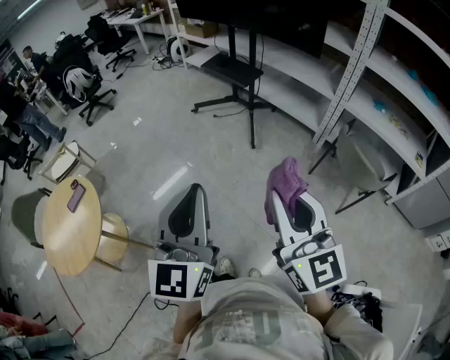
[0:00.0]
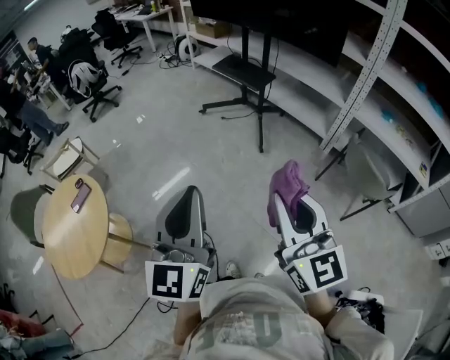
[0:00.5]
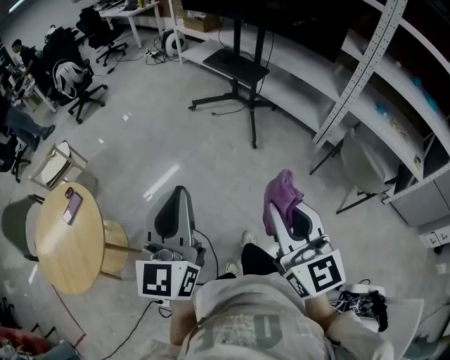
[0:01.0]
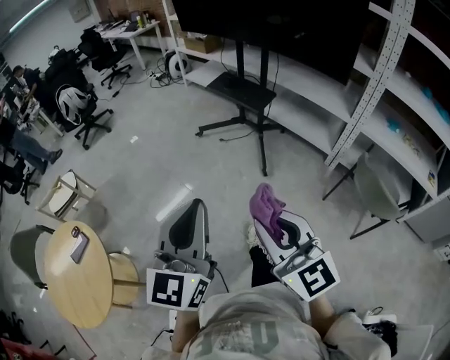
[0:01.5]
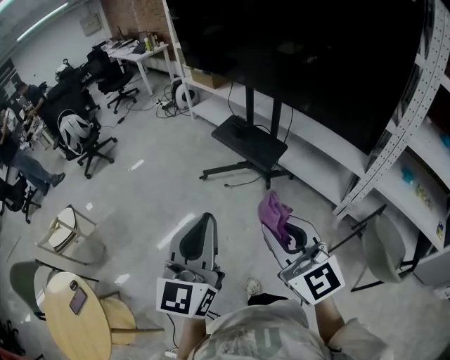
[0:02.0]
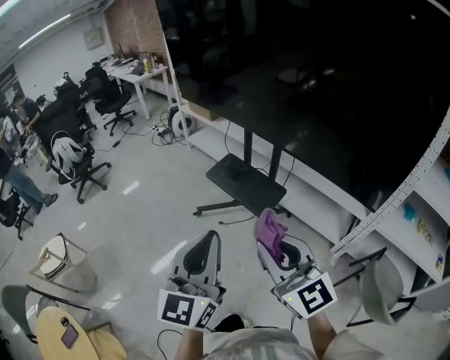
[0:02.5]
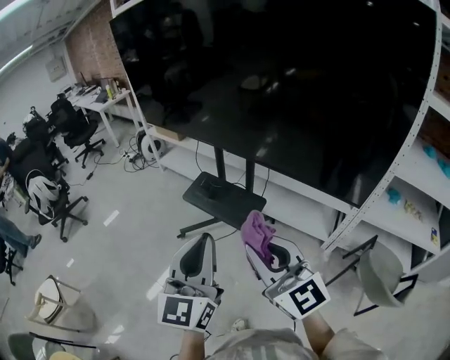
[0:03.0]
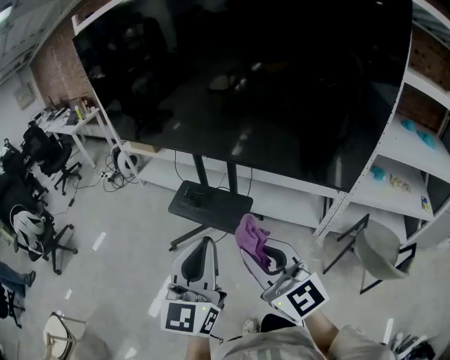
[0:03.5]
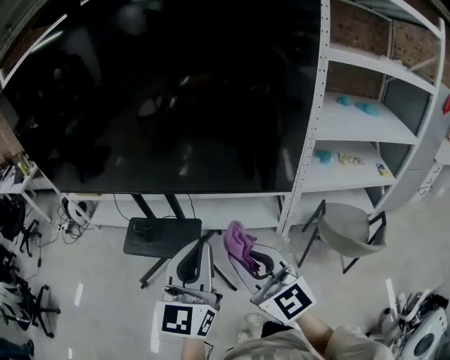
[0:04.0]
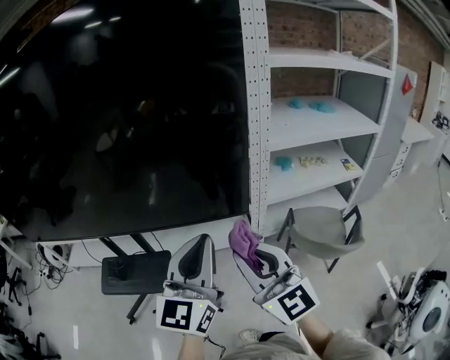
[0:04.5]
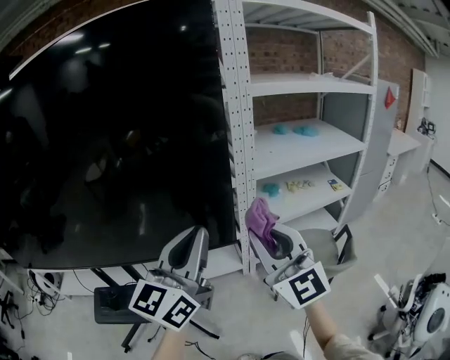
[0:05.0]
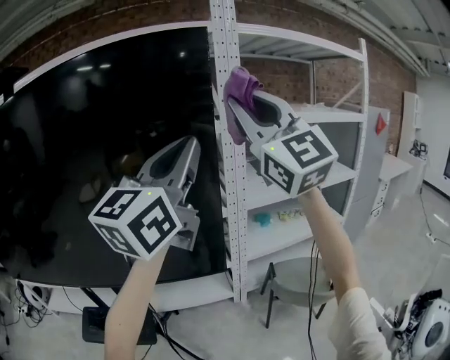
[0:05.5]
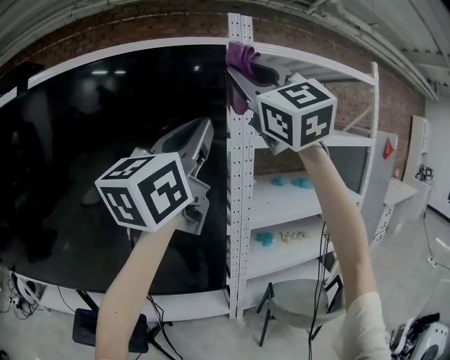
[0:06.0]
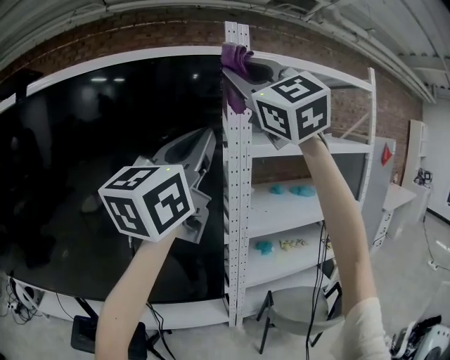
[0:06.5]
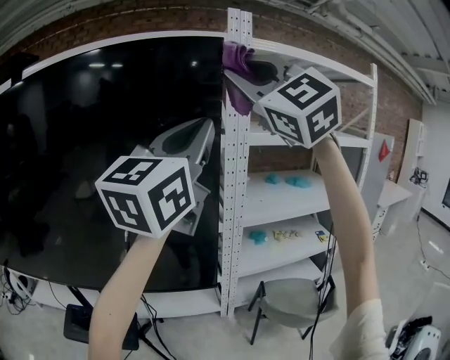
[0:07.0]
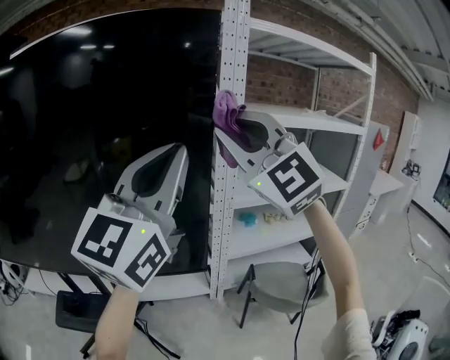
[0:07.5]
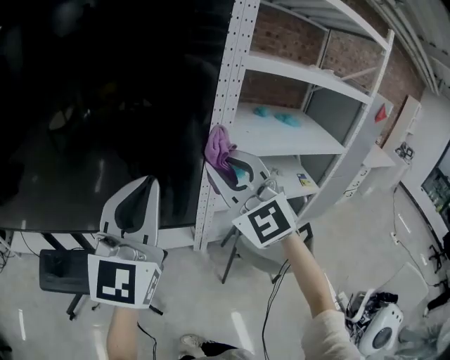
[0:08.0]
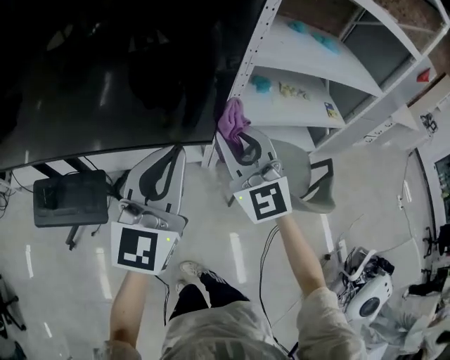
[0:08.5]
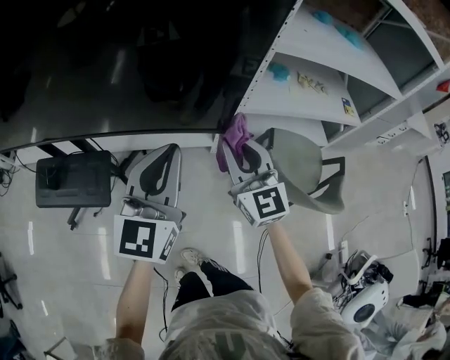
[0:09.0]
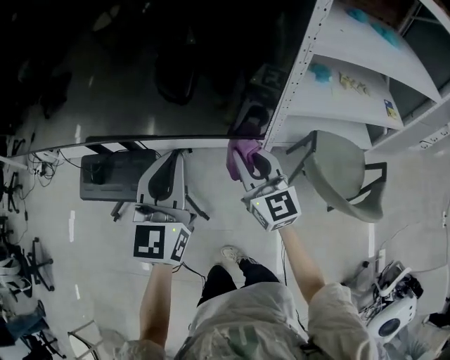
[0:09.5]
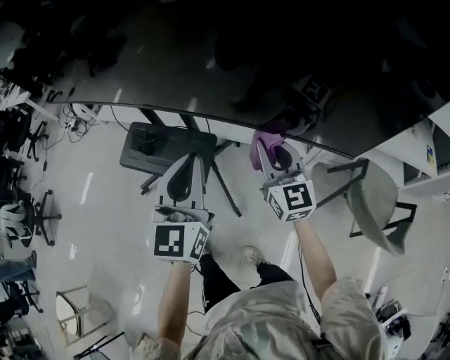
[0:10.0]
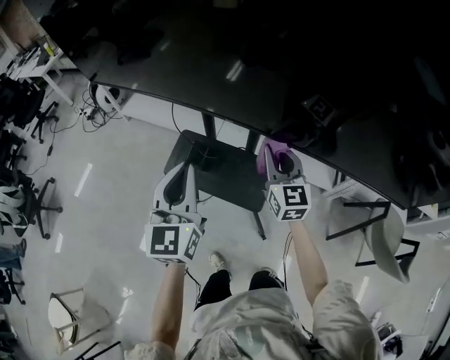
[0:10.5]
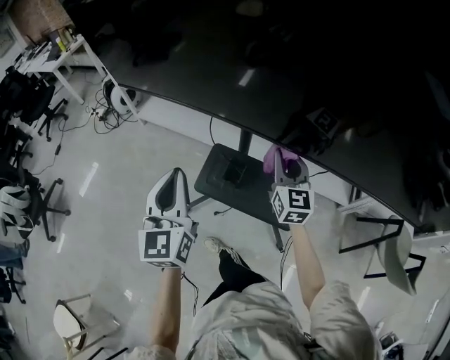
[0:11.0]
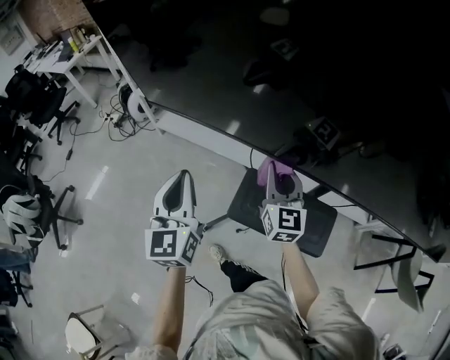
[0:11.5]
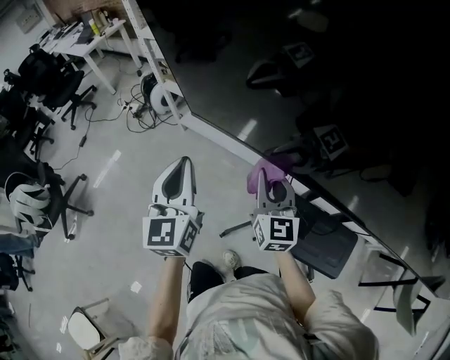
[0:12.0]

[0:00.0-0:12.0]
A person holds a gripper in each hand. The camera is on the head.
0:00.0 to 0:02.0: The pair of grippers is taken forward, some 50 cm.
0:02.0 to 0:04.0: The right gripper shifts by about 25 cm, and rotates about 30 degrees. Meanwhile the left gripper changes place by approximately 35 cm, and swivels some 40 degrees.
0:04.0 to 0:06.0: The grippers both shift upward by approximately 40 cm. The left gripper swivels approximately 40 degrees, while the right gripper swivels some 50 degrees.
0:06.0 to 0:08.0: Both grippers travel together downward, some 30 cm. The left gripper changes its angle by about 20 degrees, while the right gripper rotates roughly 20 degrees.
0:08.0 to 0:10.0: Both grippers move downward and to the left, approximately 35 cm. The right gripper rotates around the line of its fingers by approximately 50 degrees, clockwise from behind; the left gripper turns by about 40 degrees.
0:10.0 to 0:12.0: Both grippers are carried to the left and forward, roughly 70 cm. The left gripper turns by roughly 20 degrees.

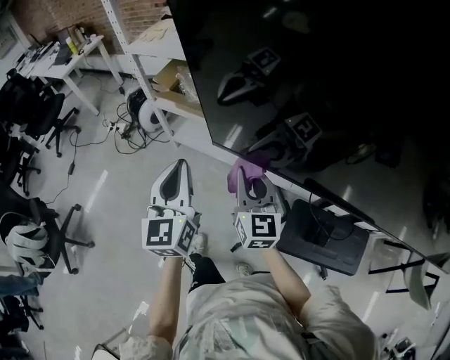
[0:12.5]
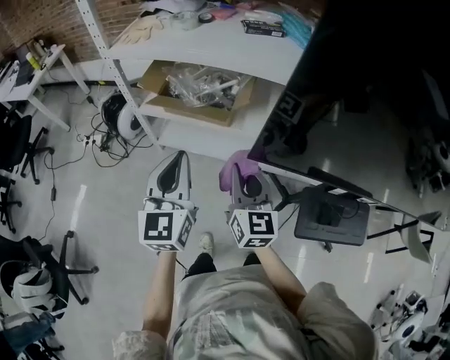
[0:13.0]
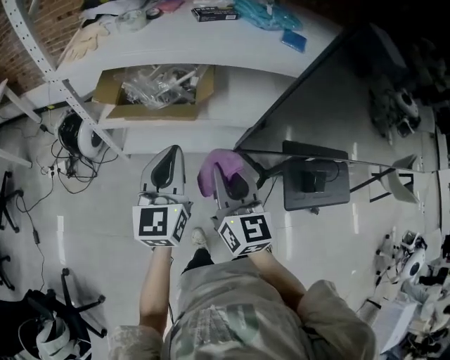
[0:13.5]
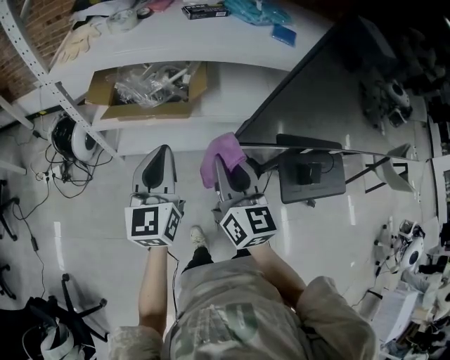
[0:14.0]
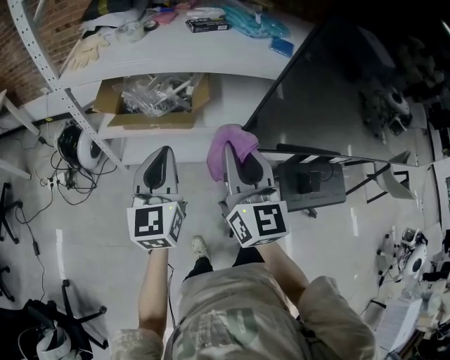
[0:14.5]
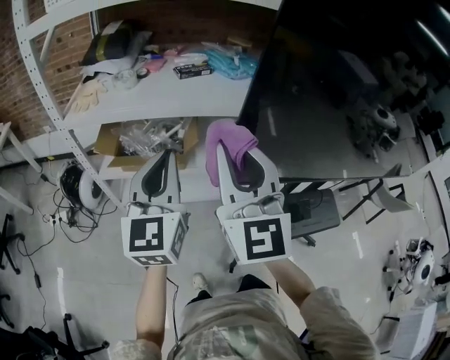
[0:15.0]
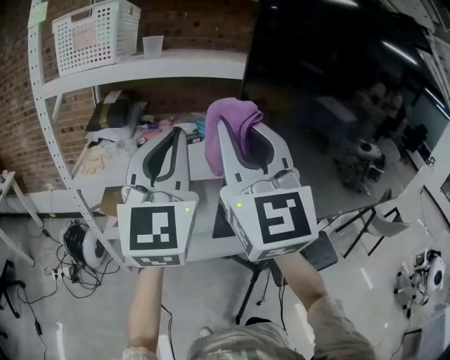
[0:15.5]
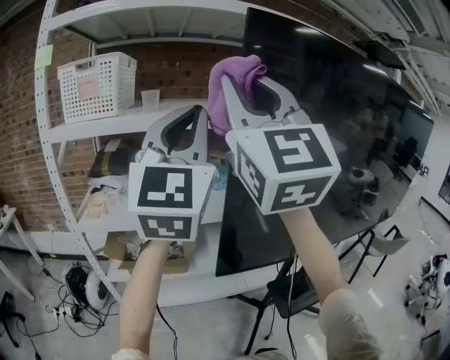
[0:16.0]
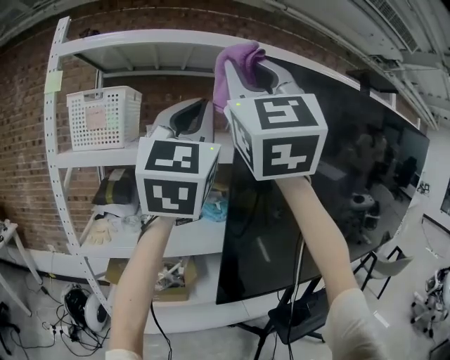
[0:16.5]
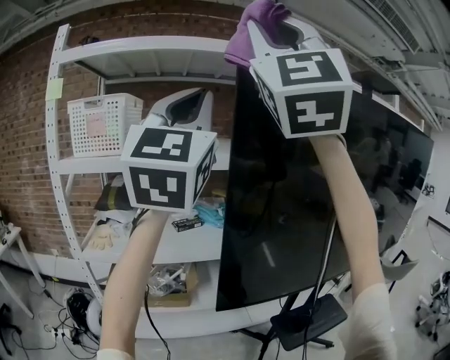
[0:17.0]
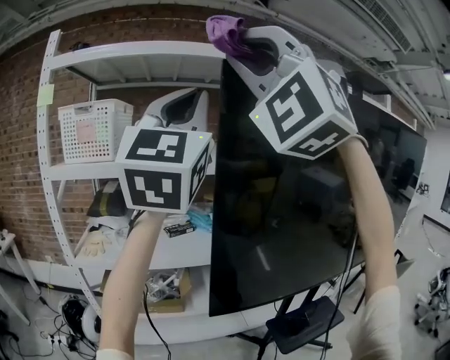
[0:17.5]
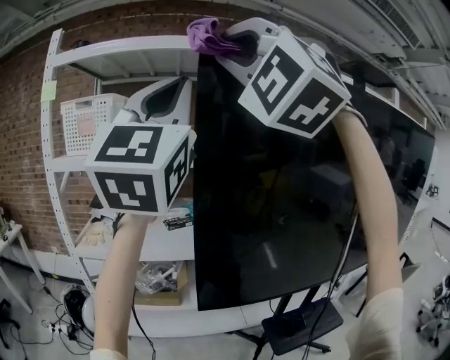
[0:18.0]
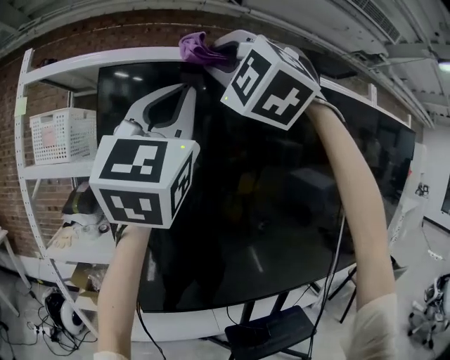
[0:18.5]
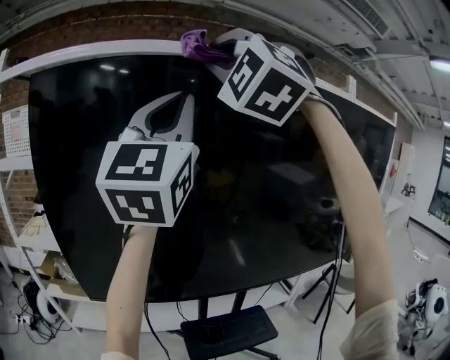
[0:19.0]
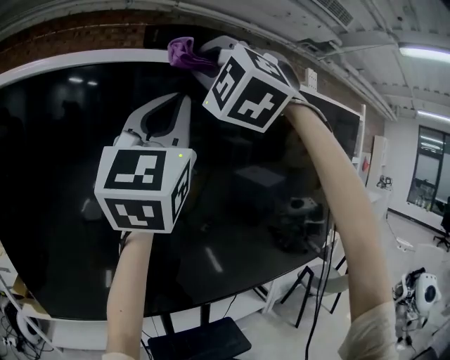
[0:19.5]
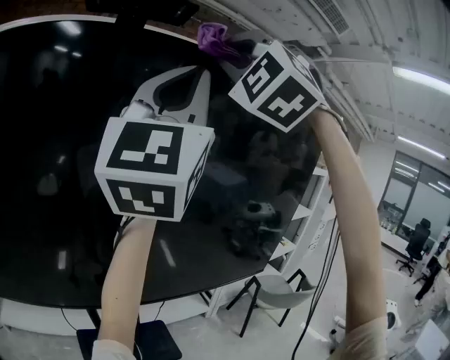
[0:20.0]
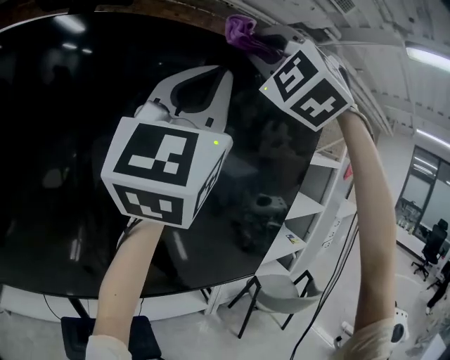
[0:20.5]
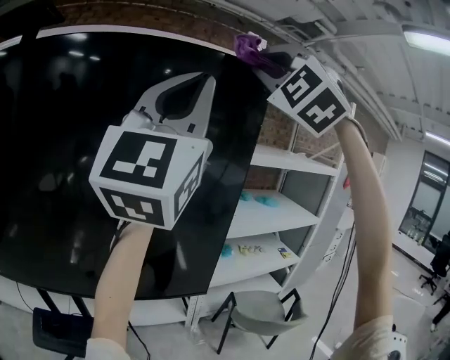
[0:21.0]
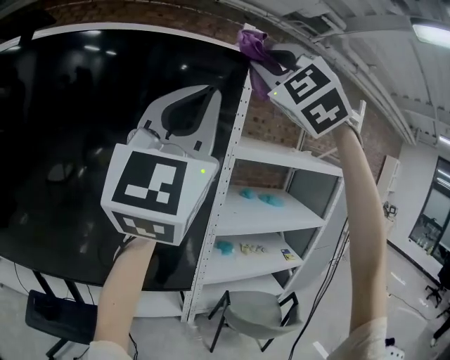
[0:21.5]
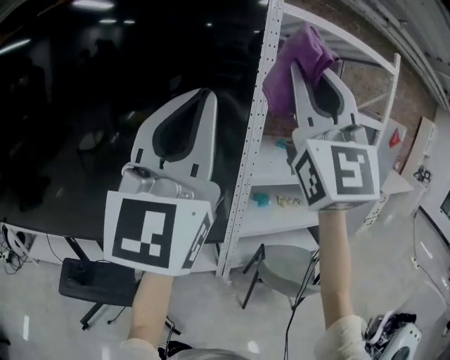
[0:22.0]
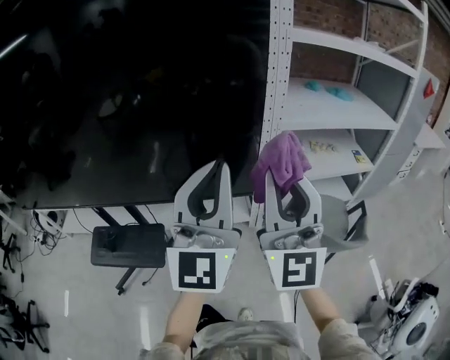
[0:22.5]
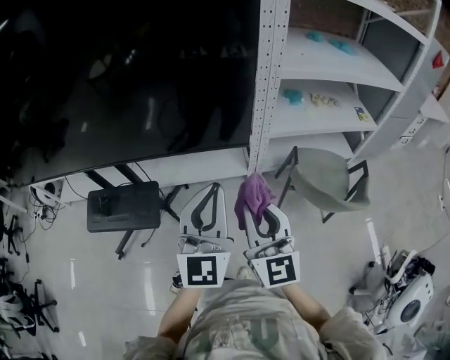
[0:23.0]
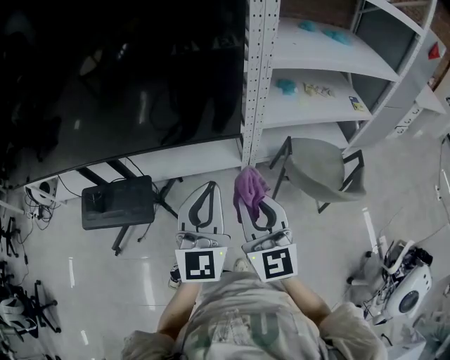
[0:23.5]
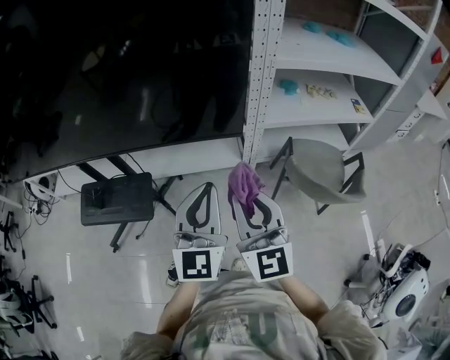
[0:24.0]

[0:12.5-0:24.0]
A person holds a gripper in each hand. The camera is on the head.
0:12.5 to 0:14.5: The left gripper changes place by about 10 cm, and turns by about 30 degrees. The right gripper travels upward by about 15 cm, and turns by approximately 30 degrees.
0:14.5 to 0:16.5: The grippers both shift upward by approximately 60 cm. The right gripper tips its fingers upward by some 30 degrees. The left gripper tilts its fingers approximately 40 degrees upward.
0:16.5 to 0:18.5: The grippers both shift to the right by about 20 cm. The right gripper twists roughly 50 degrees counterclockwise, seen from behind.
0:18.5 to 0:20.0: Both grippers are carried to the right, some 50 cm. The left gripper rotates roughly 20 degrees.
0:20.0 to 0:22.0: Both grippers are carried to the right, roughly 50 cm. The right gripper rotates around the line of its fingers by roughly 60 degrees, clockwise from behind.
0:22.0 to 0:24.0: The two grippers go approximately 50 cm downward. The left gripper angles its fingers downward, by approximately 40 degrees. The right gripper tilts its fingers about 40 degrees downward.

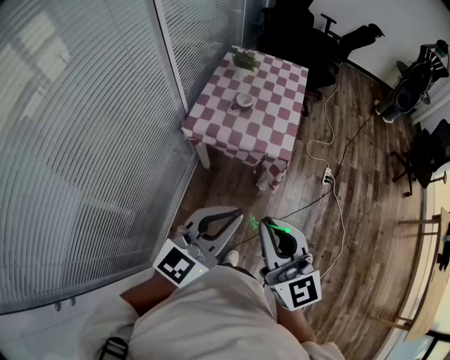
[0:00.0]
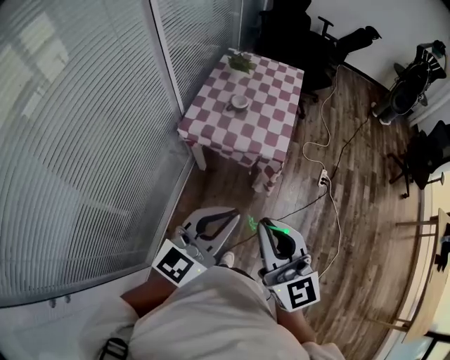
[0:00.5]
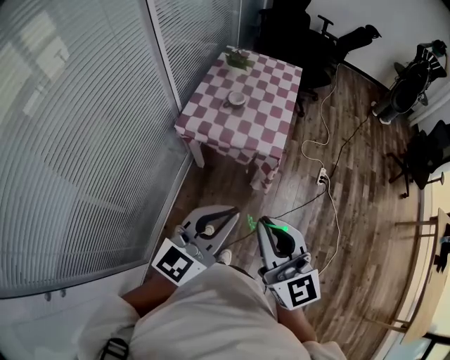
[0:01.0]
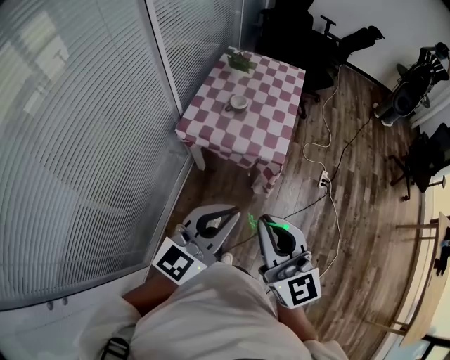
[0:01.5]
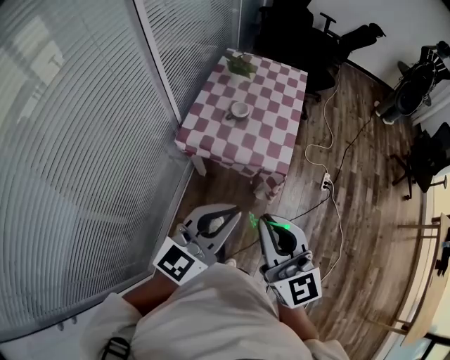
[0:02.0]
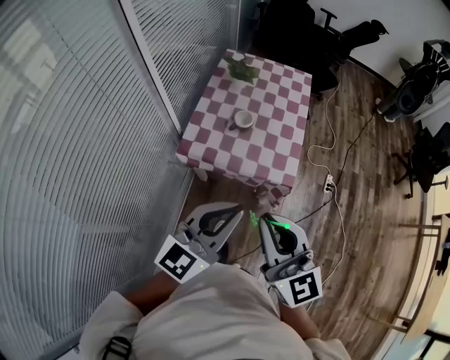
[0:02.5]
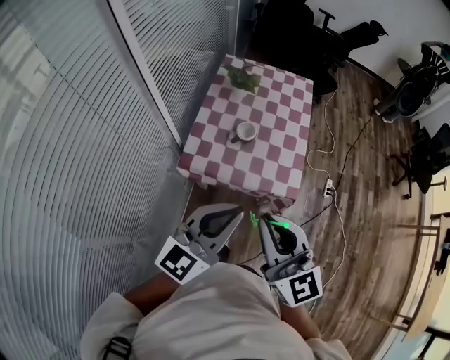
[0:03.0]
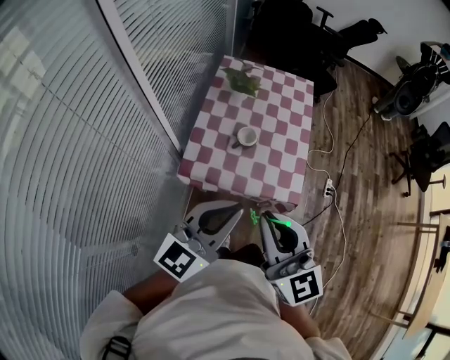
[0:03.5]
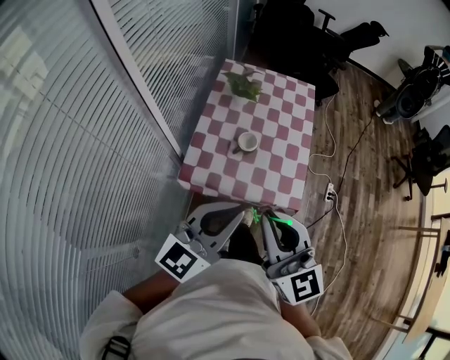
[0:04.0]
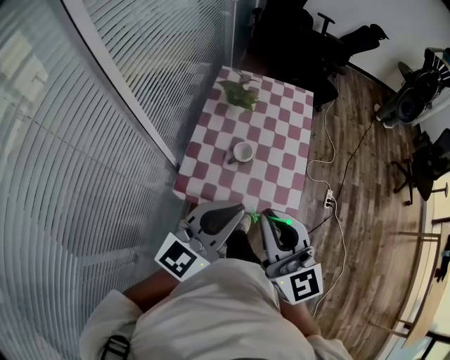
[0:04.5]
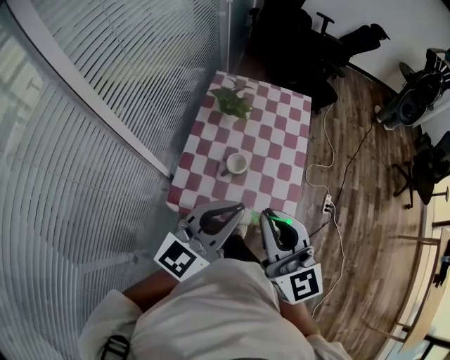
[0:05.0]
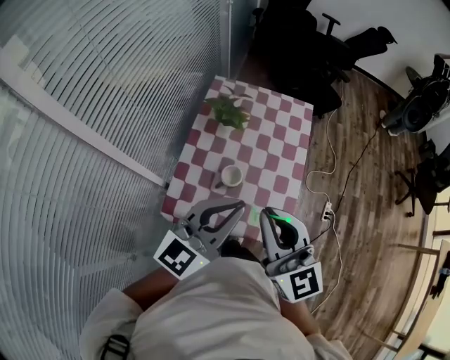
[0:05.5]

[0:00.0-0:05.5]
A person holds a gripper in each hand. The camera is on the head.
0:00.0 to 0:02.0: The grippers both shift forward by about 10 cm.
0:02.0 to 0:03.5: Both grippers move forward and to the left, some 20 cm.
0:03.5 to 0:05.5: The grippers both shift forward by roughly 20 cm.
